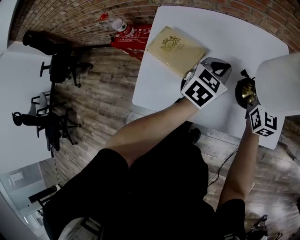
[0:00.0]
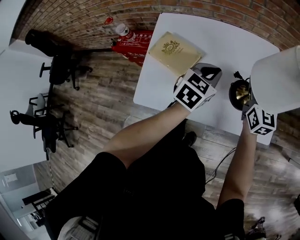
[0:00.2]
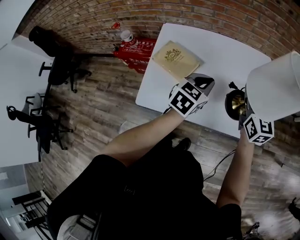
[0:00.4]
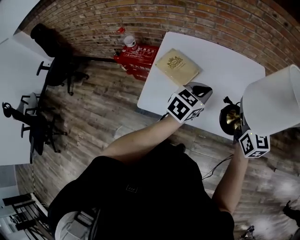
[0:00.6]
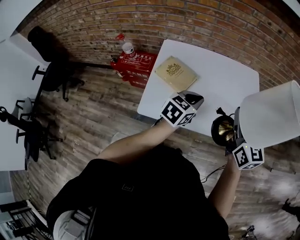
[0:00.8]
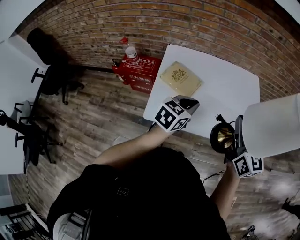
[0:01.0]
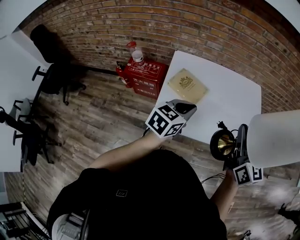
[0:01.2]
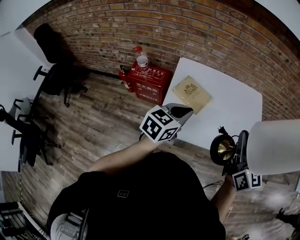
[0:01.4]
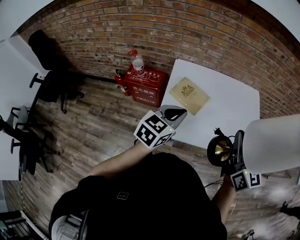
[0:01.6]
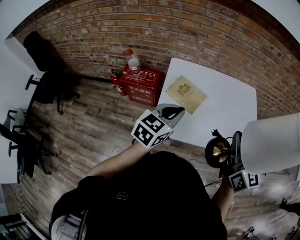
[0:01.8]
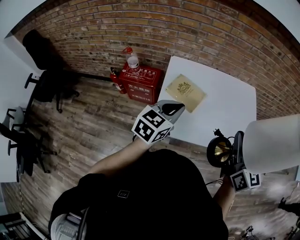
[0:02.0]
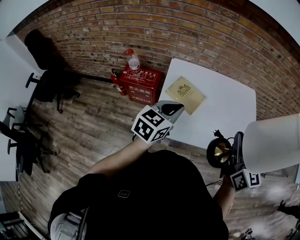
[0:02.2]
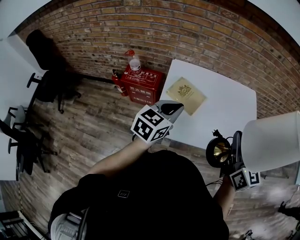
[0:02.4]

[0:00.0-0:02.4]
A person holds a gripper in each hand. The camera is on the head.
0:00.0 to 0:01.2: The right gripper goes roughly 35 cm upward, backward and to the left. The left gripper goes roughly 30 cm backward, to the left and upward.
0:01.2 to 0:02.4: The left gripper heads to the left, covering roughly 5 cm.

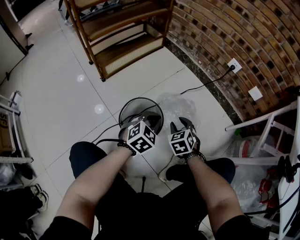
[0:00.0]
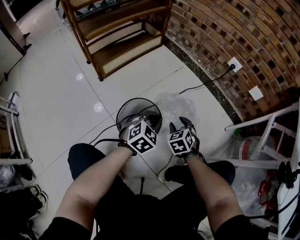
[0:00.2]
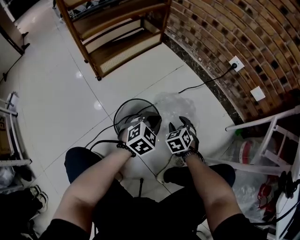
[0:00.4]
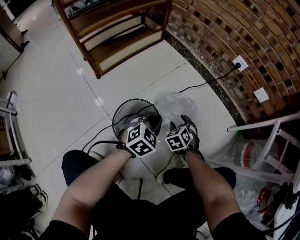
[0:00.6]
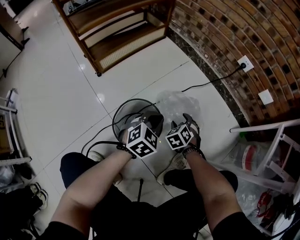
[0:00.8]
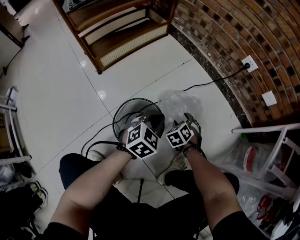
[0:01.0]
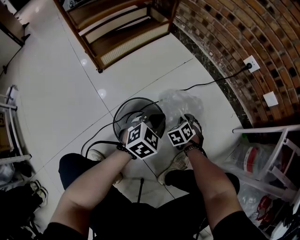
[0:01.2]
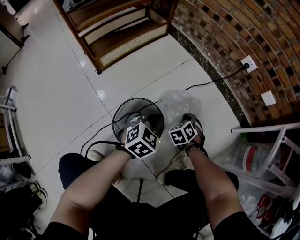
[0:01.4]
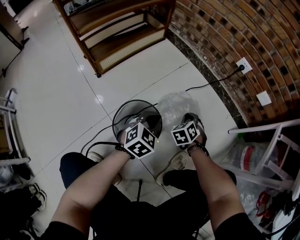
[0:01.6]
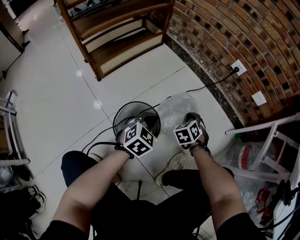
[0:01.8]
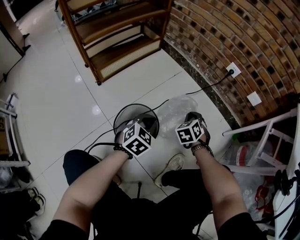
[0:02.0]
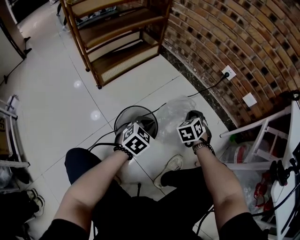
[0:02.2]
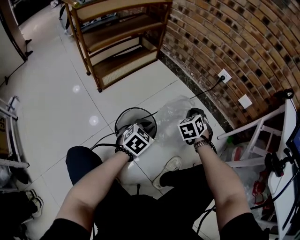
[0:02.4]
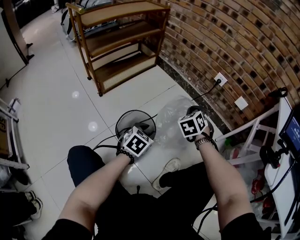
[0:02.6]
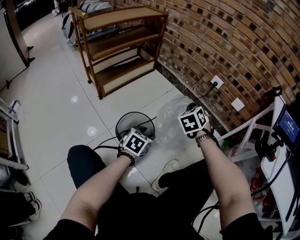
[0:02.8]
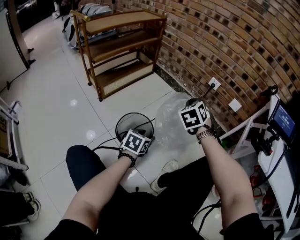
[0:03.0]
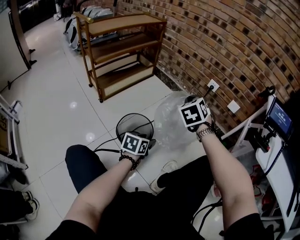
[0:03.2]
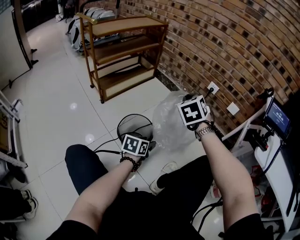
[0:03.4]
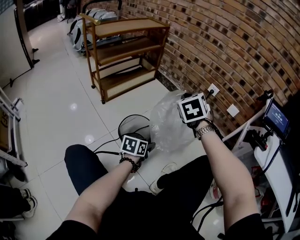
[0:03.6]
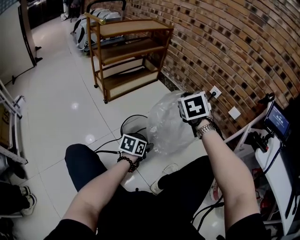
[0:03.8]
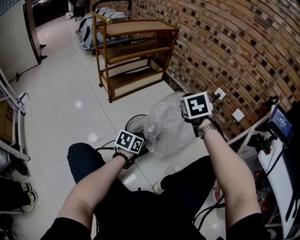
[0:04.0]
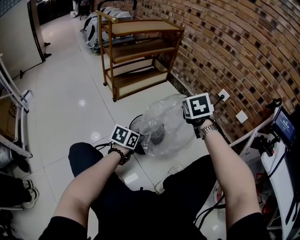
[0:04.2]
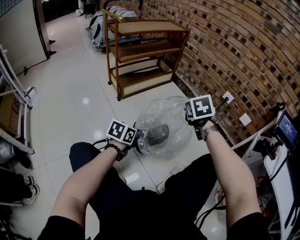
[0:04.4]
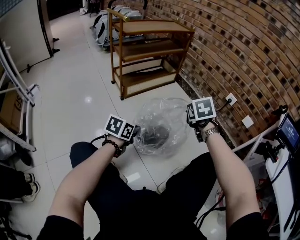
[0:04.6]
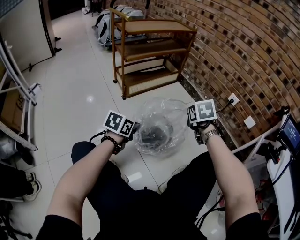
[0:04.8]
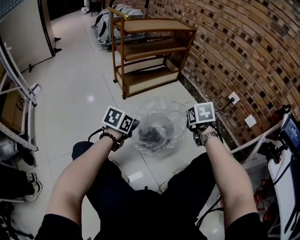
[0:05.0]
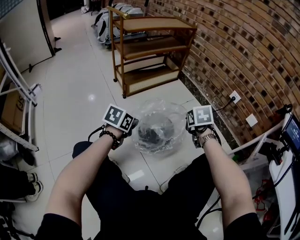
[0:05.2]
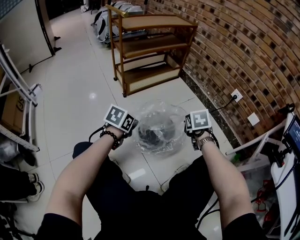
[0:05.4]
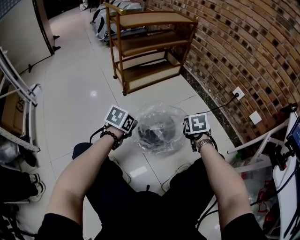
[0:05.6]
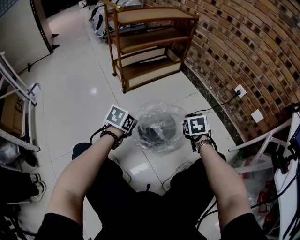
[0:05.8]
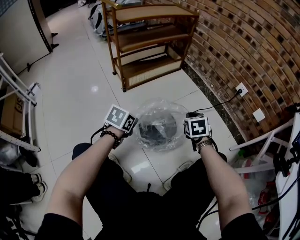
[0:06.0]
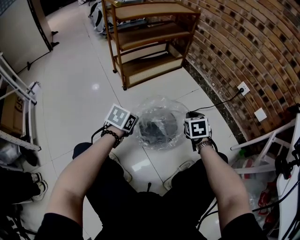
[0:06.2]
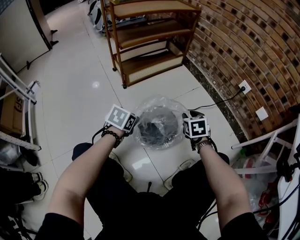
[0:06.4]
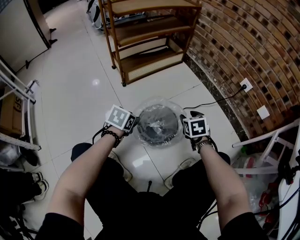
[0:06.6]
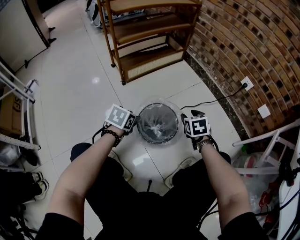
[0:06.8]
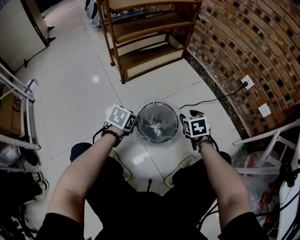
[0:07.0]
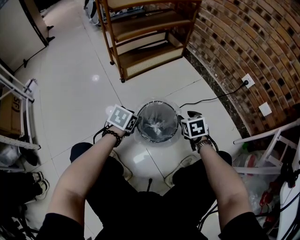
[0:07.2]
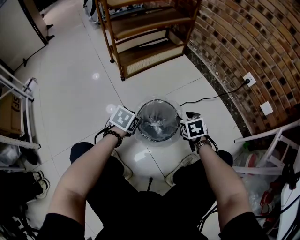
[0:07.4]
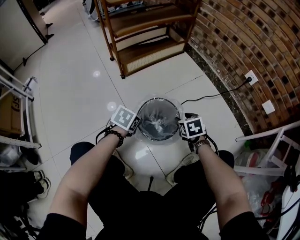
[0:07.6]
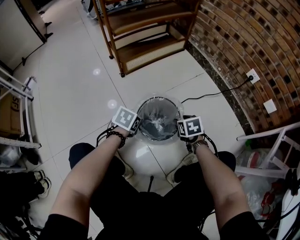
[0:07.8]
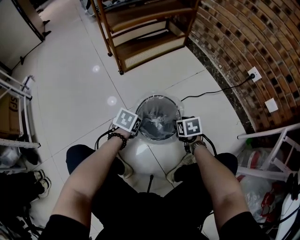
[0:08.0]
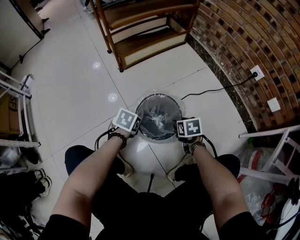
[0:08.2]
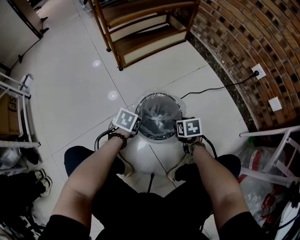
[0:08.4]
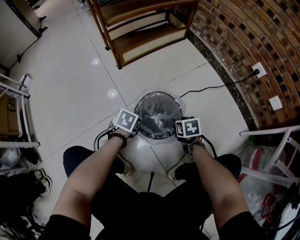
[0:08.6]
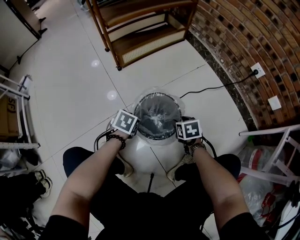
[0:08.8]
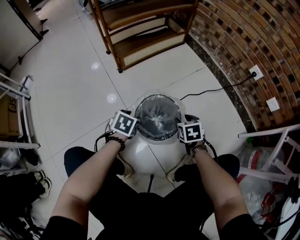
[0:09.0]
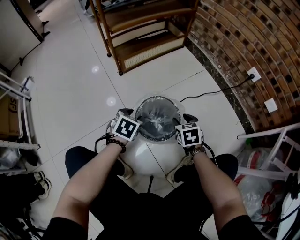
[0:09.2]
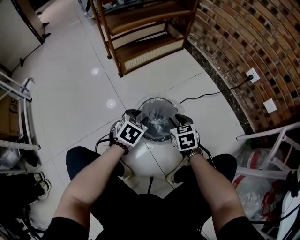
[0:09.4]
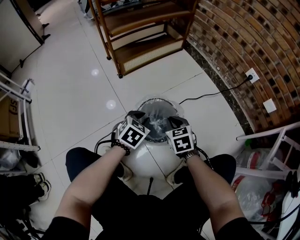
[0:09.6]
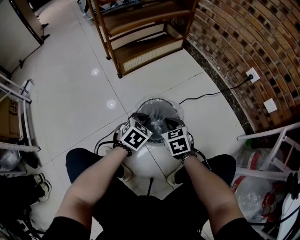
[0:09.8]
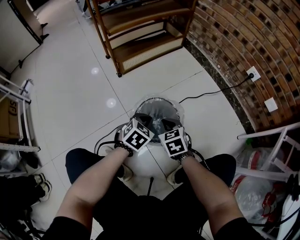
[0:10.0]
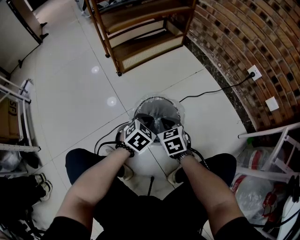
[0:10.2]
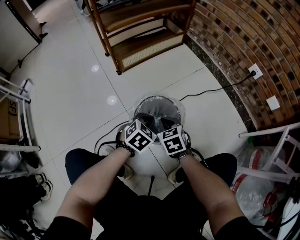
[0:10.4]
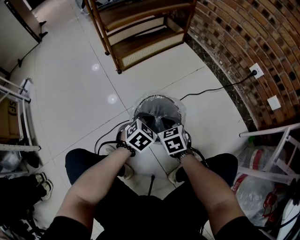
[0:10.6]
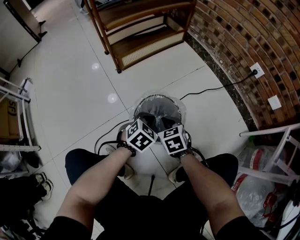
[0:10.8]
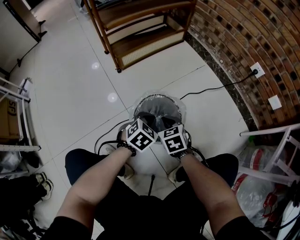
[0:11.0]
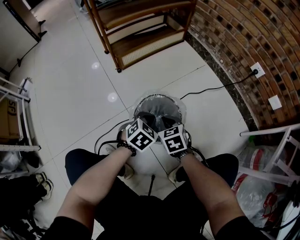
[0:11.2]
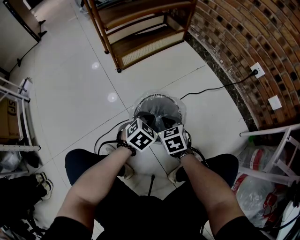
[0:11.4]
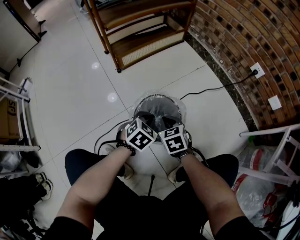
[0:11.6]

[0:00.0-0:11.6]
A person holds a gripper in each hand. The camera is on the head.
0:00.0 to 0:01.4: The right gripper shifts approximately 15 cm forward and downward, and closes its fingers, while the left gripper heads forward, covering approximately 5 cm.
0:01.4 to 0:02.8: The left gripper heads backward, covering roughly 10 cm, and opens; the right gripper moves upward, about 30 cm.
0:02.8 to 0:04.4: The right gripper heads to the left, backward and upward, covering roughly 15 cm, and turns by roughly 20 degrees, while the left gripper travels to the left and backward by roughly 15 cm, rotates about 20 degrees, and closes its fingers.
0:04.4 to 0:05.8: The left gripper travels to the left by approximately 5 cm; the right gripper travels downward by roughly 15 cm.
0:05.8 to 0:07.2: The right gripper shifts about 5 cm downward, and opens up, while the left gripper changes place by approximately 5 cm, and opens.
0:07.2 to 0:08.8: Both grippers move downward, approximately 10 cm.
0:08.8 to 0:10.2: The right gripper goes roughly 15 cm to the left and upward, rotates some 20 degrees, and closes its fingers, while the left gripper shifts roughly 10 cm to the right and upward, turns by about 30 degrees, and closes.
0:10.2 to 0:11.6: The grippers stay close to where they were, moving slightly.

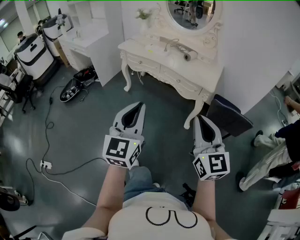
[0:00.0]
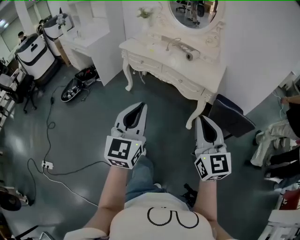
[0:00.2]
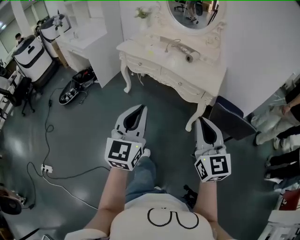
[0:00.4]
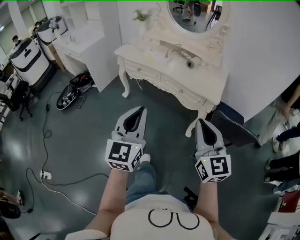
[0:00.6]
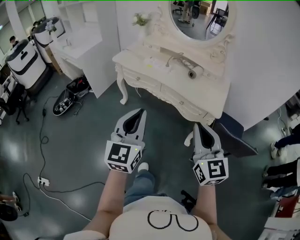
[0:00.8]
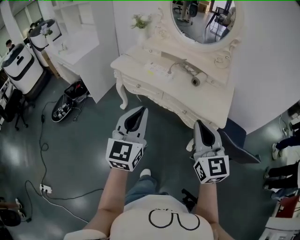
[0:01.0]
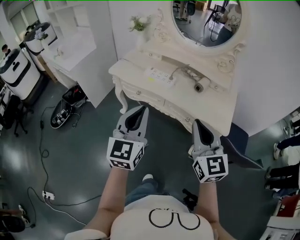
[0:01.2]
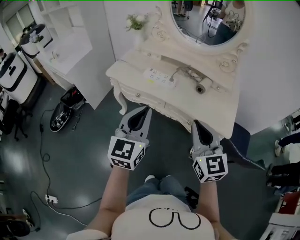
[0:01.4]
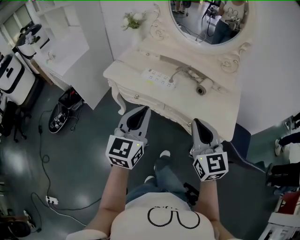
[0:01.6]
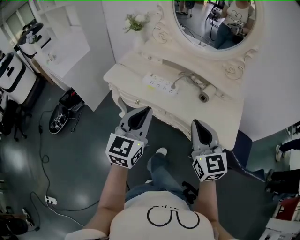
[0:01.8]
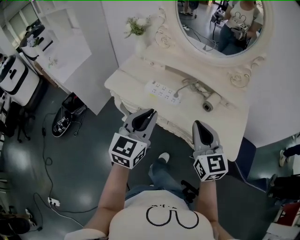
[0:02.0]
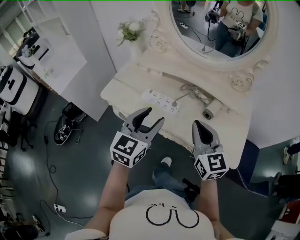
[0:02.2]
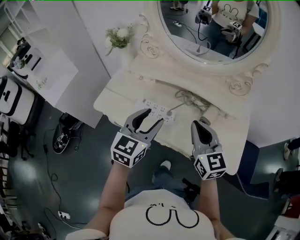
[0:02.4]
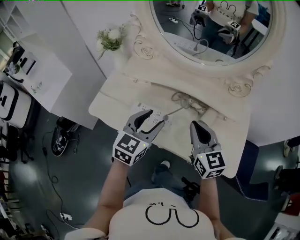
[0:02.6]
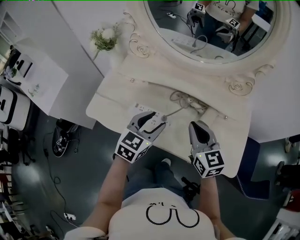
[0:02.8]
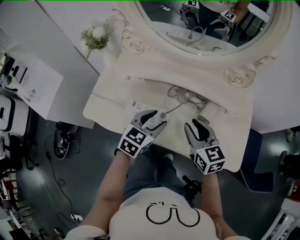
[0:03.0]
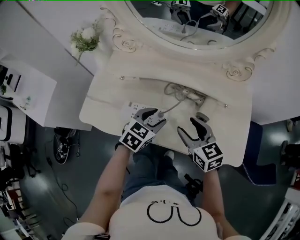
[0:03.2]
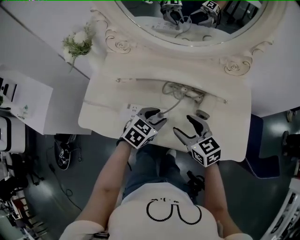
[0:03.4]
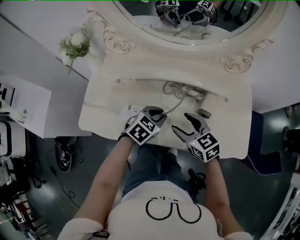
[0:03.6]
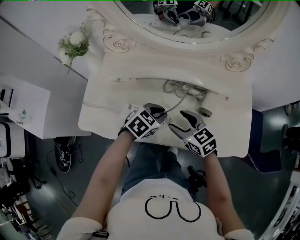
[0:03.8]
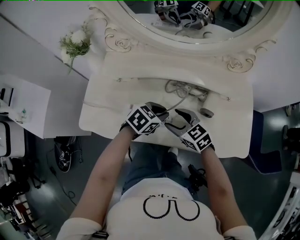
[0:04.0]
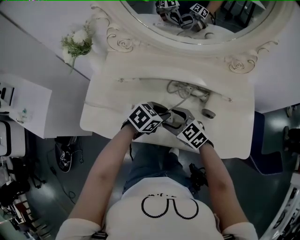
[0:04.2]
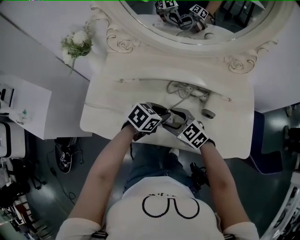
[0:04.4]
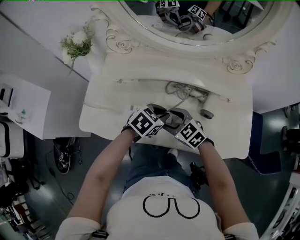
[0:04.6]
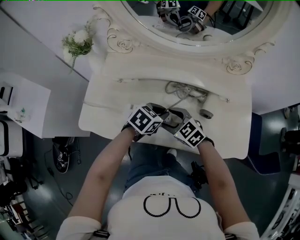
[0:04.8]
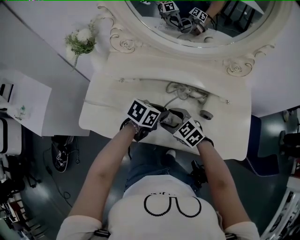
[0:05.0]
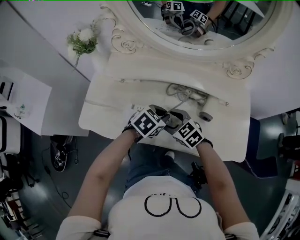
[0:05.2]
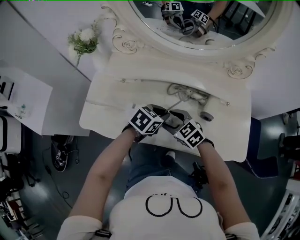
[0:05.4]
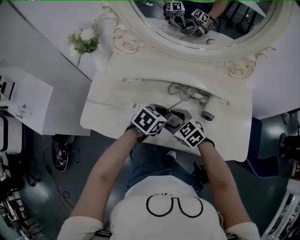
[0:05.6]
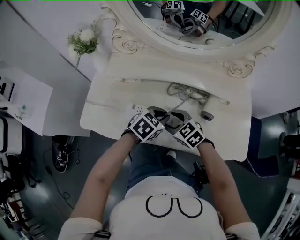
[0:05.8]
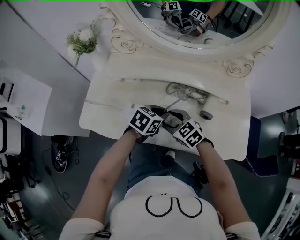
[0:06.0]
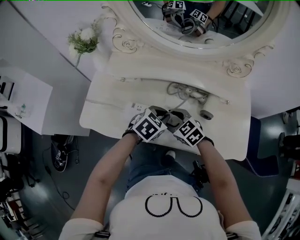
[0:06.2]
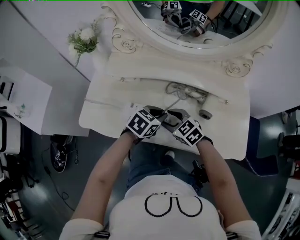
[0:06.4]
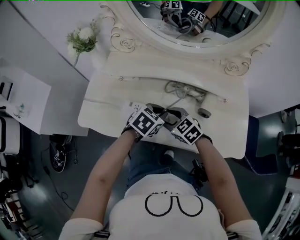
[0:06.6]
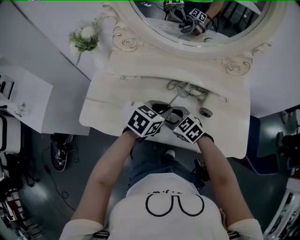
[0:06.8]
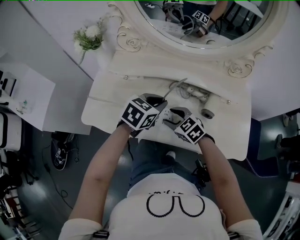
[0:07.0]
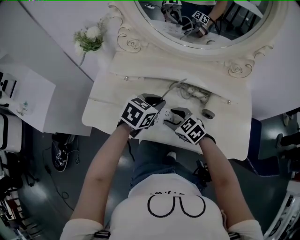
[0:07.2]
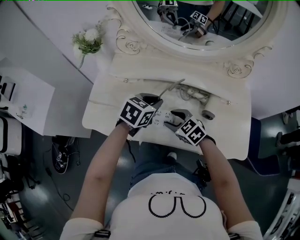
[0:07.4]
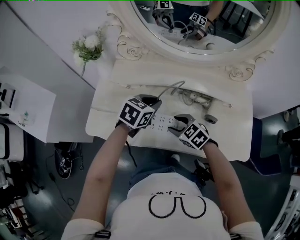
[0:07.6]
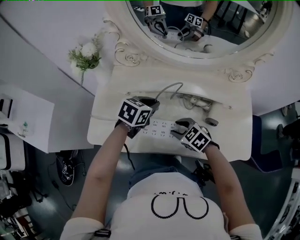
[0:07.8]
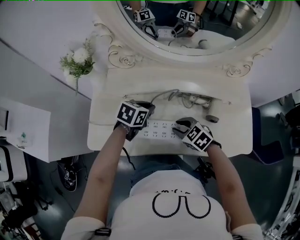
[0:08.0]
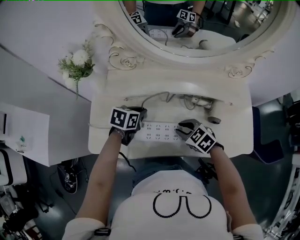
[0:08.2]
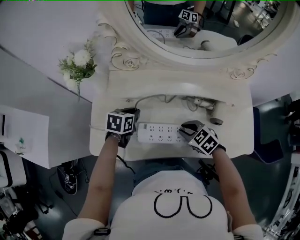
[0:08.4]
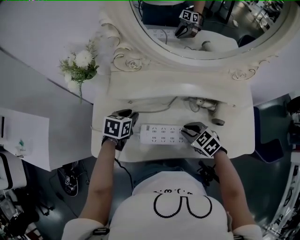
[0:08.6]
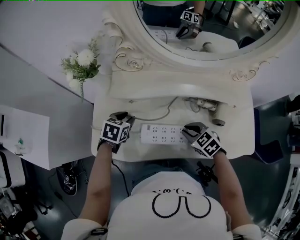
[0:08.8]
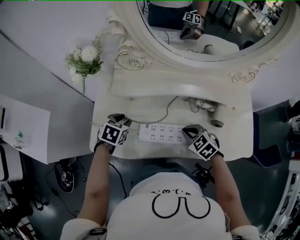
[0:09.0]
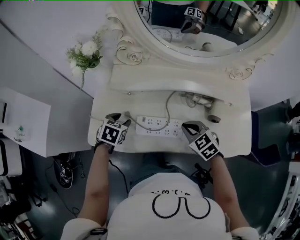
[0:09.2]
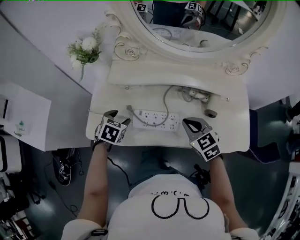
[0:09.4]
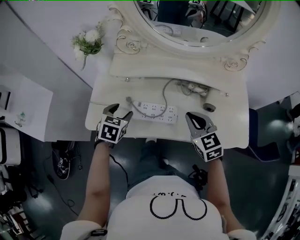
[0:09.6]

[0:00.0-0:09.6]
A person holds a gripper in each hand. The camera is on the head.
0:00.0 to 0:01.6: Both grippers are carried forward, approximately 50 cm.
0:01.6 to 0:03.2: Both grippers travel together forward and downward, some 35 cm. The left gripper points its fingers some 40 degrees further downward, and opens its fingers. The right gripper rotates about 20 degrees, and opens up.
0:03.2 to 0:04.8: The left gripper closes its fingers, while the right gripper moves some 15 cm, and swivels approximately 30 degrees.
0:04.8 to 0:06.4: There are only small adjustments of the grippers.
0:06.4 to 0:08.0: The left gripper goes approximately 15 cm forward and to the left.
0:08.0 to 0:09.6: The left gripper heads to the left and backward, covering roughly 15 cm, turns by roughly 30 degrees, and opens its fingers; the right gripper goes about 10 cm upward, changes its angle by approximately 30 degrees, and closes.
